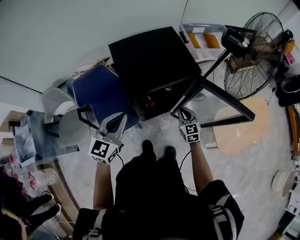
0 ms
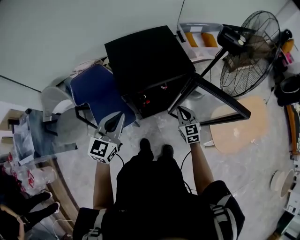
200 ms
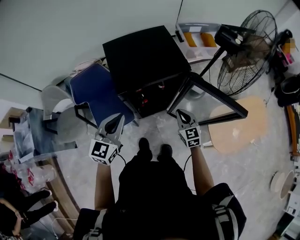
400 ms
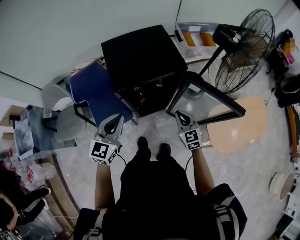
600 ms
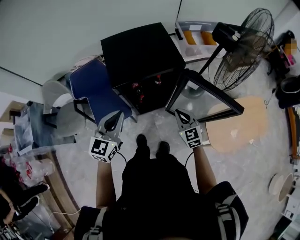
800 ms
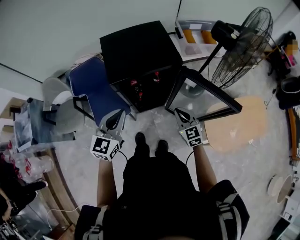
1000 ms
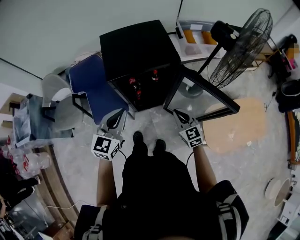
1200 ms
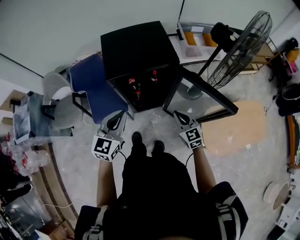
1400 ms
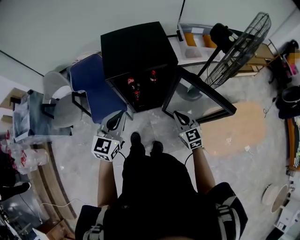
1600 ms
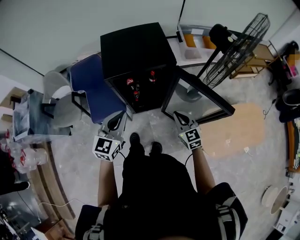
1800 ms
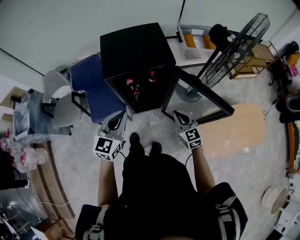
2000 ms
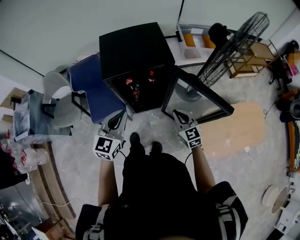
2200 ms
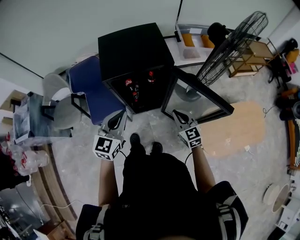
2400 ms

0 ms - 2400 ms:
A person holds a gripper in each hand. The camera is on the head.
0 ms - 1200 ms: The left gripper goes some 15 cm to the right and backward; the right gripper travels backward, upward and to the right by about 15 cm.
1200 ms - 2400 ms: The grippers stay close to where they were, moving slightly.

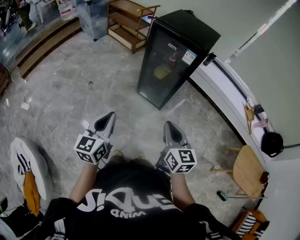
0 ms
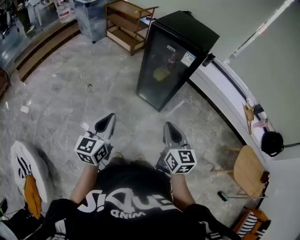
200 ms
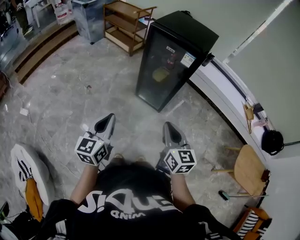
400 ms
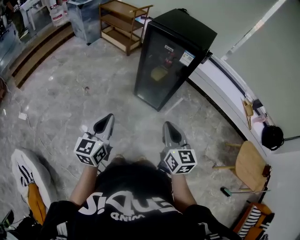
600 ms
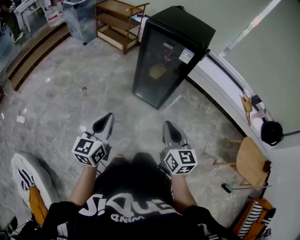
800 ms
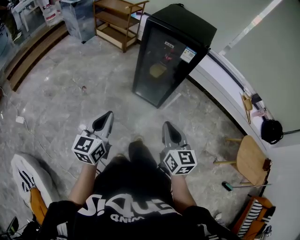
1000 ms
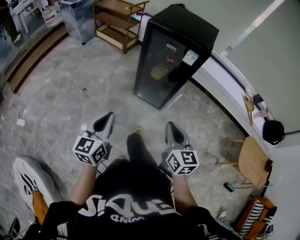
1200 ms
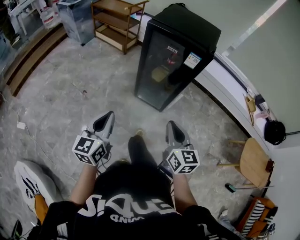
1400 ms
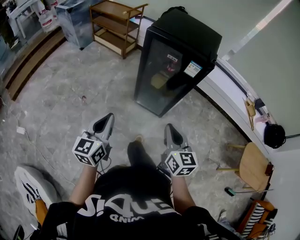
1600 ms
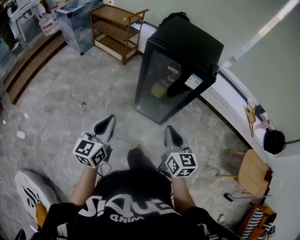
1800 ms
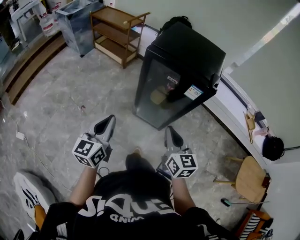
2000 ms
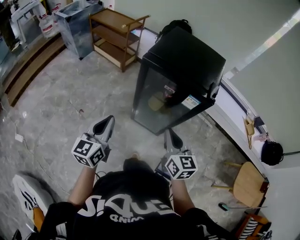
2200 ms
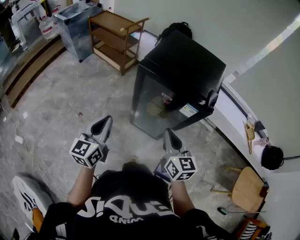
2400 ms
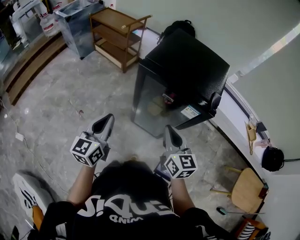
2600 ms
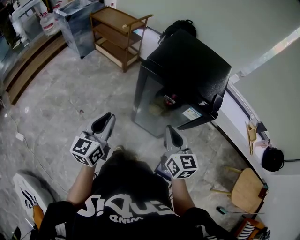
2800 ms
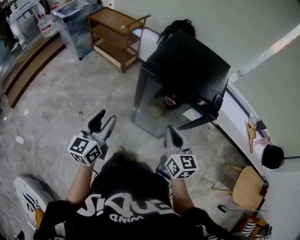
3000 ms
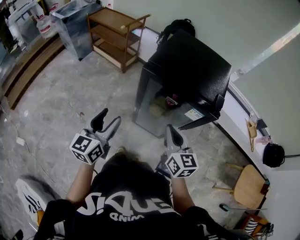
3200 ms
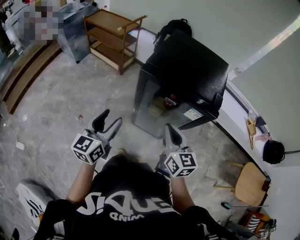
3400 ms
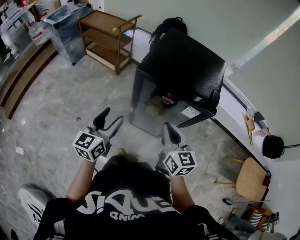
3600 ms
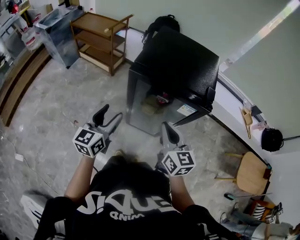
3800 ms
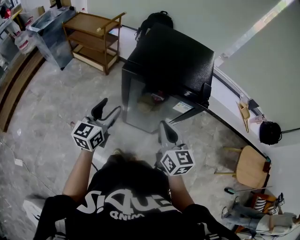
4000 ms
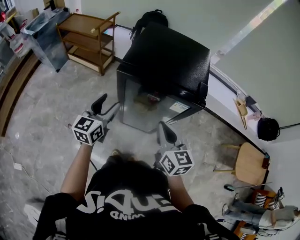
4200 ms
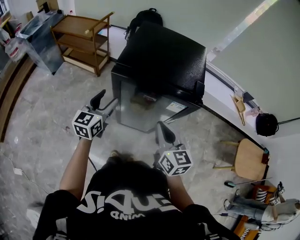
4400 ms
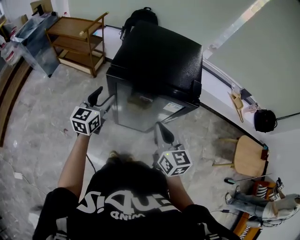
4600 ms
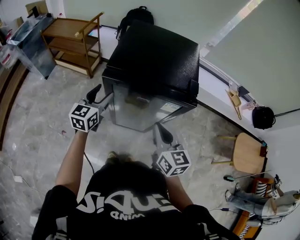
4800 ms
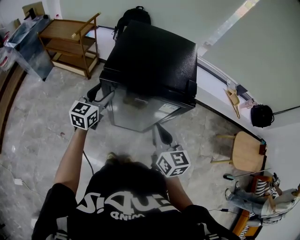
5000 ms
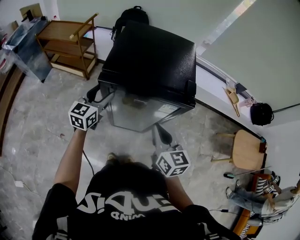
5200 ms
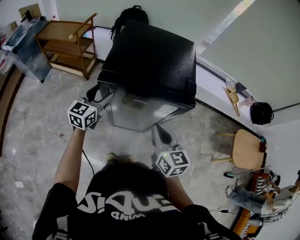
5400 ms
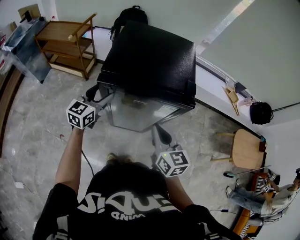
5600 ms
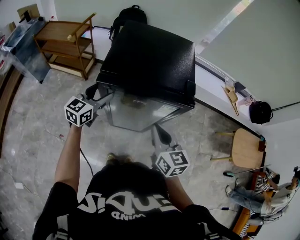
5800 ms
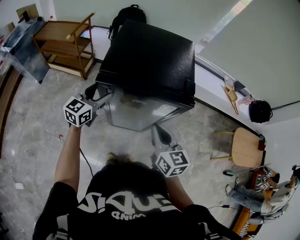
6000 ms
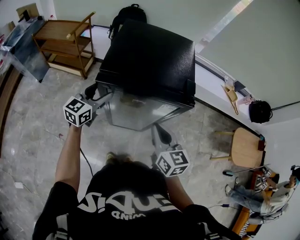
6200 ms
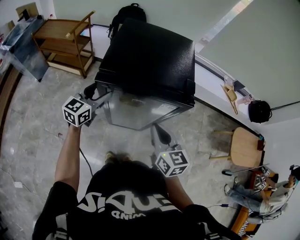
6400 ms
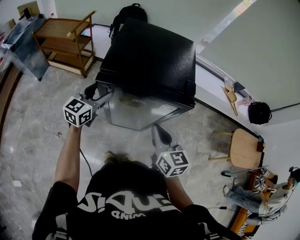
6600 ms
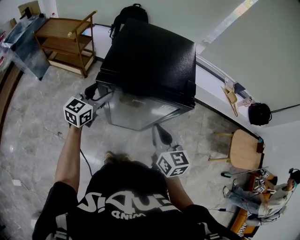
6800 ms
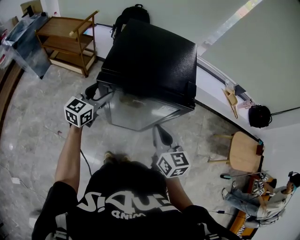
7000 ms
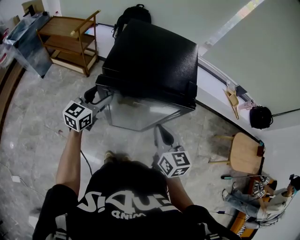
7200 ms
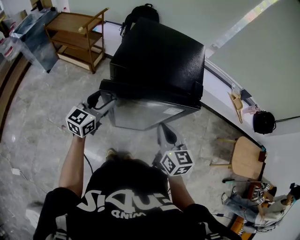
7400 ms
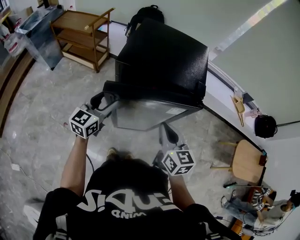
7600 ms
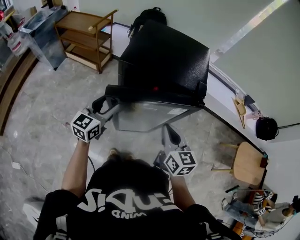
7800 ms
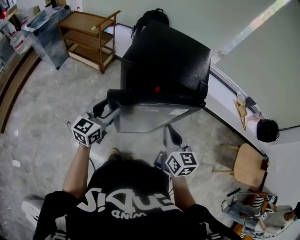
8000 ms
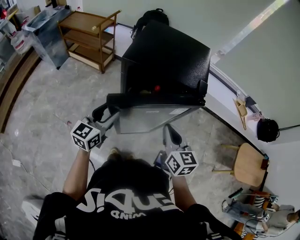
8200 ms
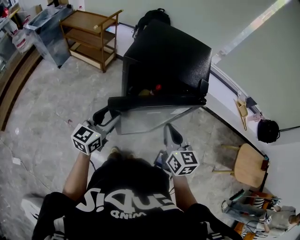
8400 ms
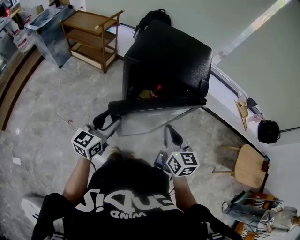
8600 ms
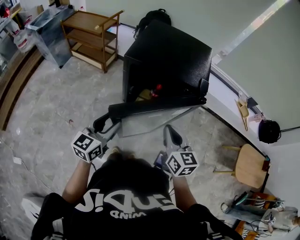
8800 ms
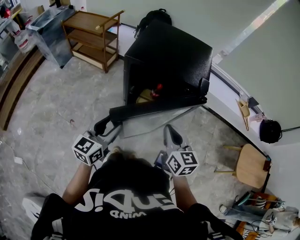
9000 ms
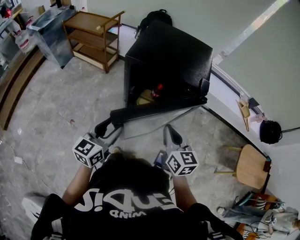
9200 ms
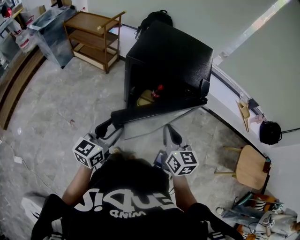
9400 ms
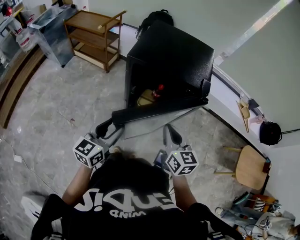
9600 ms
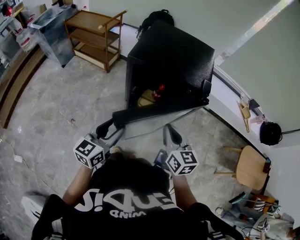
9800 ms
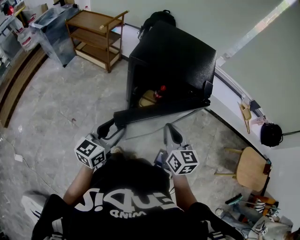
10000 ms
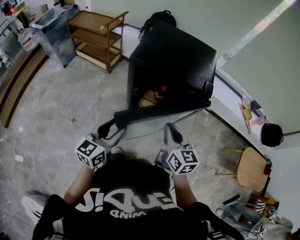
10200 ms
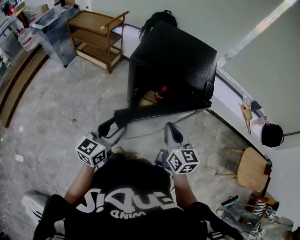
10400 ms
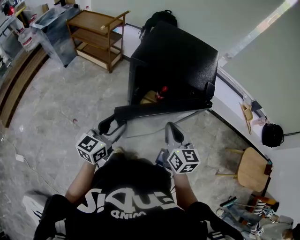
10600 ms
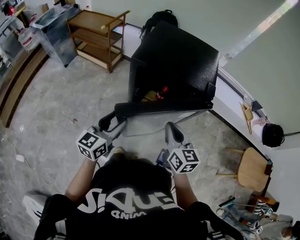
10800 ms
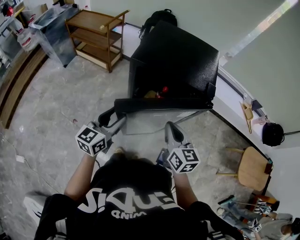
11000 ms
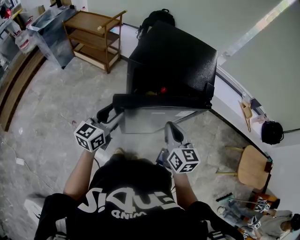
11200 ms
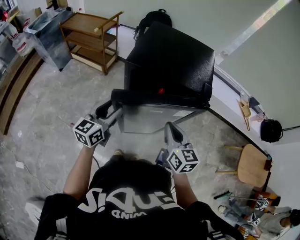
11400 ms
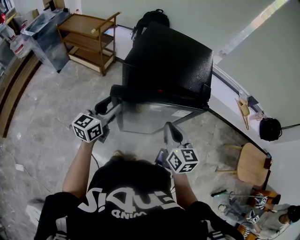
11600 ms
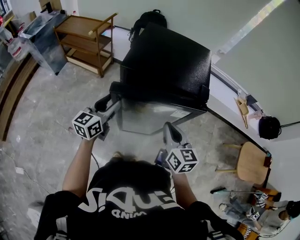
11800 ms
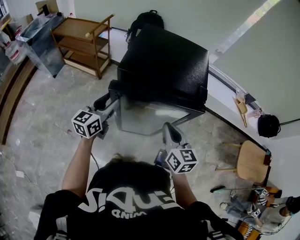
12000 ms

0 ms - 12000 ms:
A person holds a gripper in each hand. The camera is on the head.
0 ms - 1600 ms: The two grippers go approximately 15 cm forward.
1600 ms - 3000 ms: The two grippers go roughly 25 cm forward. The left gripper opens.
3000 ms - 4400 ms: The left gripper moves forward and to the right, roughly 15 cm.
4400 ms - 6000 ms: The left gripper shifts some 10 cm forward.
6000 ms - 7600 ms: The left gripper moves backward, about 10 cm.
7600 ms - 9000 ms: The left gripper travels backward by roughly 15 cm.
9000 ms - 10400 ms: The grippers make only small movements.
10400 ms - 12000 ms: The right gripper shifts approximately 5 cm forward, while the left gripper travels forward by roughly 15 cm.

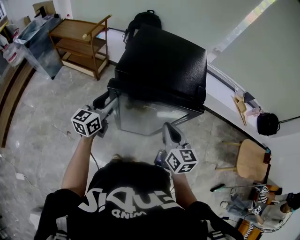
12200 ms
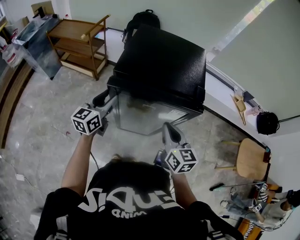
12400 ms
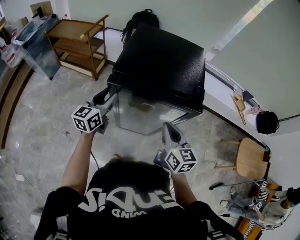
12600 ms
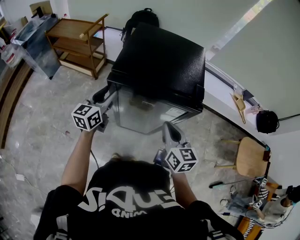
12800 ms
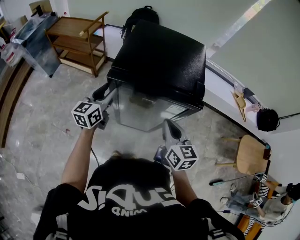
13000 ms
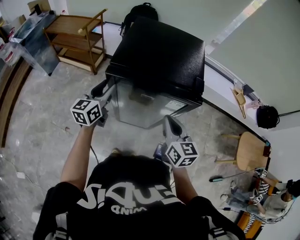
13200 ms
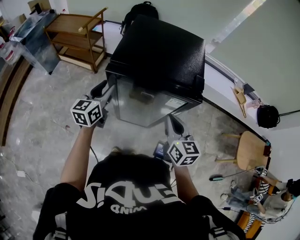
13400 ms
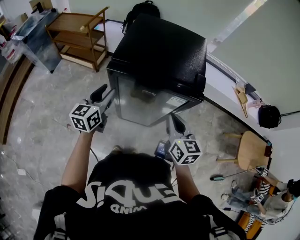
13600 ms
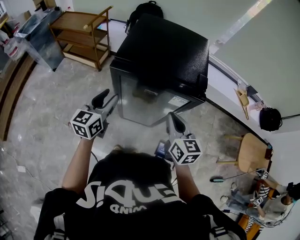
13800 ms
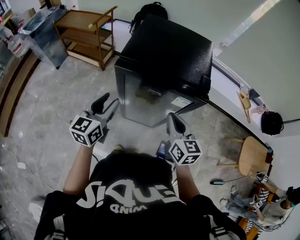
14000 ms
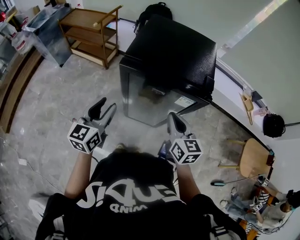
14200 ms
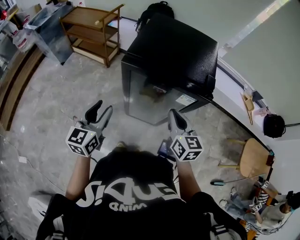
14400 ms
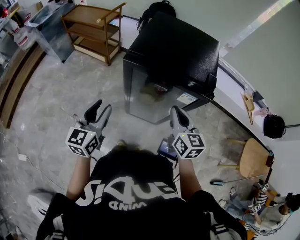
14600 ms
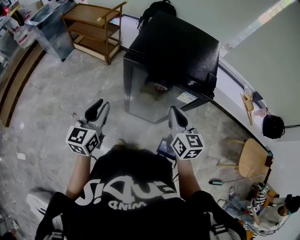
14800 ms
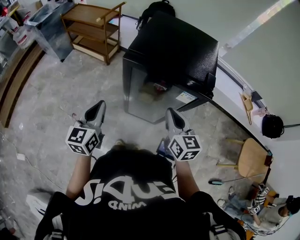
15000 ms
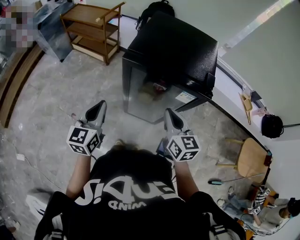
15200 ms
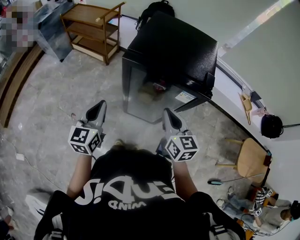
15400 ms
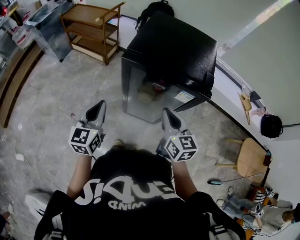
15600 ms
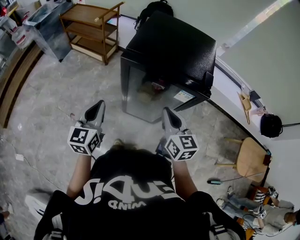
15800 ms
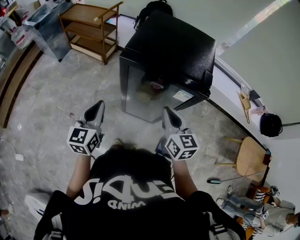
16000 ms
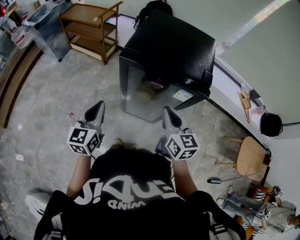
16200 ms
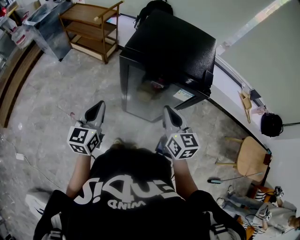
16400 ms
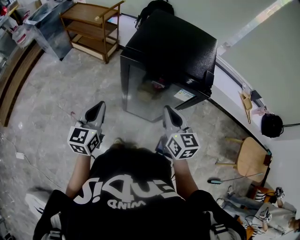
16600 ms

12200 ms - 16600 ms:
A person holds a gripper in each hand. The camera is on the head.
12200 ms - 13600 ms: There are only small adjustments of the grippers.
13600 ms - 15200 ms: The left gripper moves backward and to the left, some 15 cm, and closes. The right gripper is displaced to the left by some 5 cm.
15200 ms - 16600 ms: The grippers make only small movements.

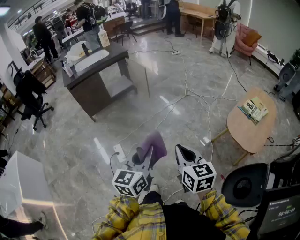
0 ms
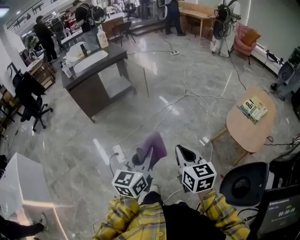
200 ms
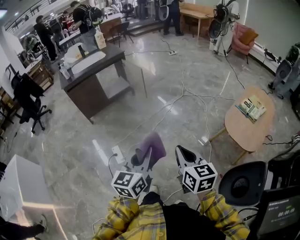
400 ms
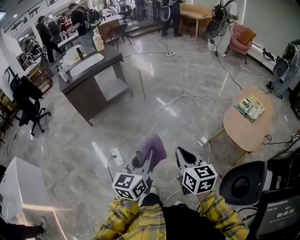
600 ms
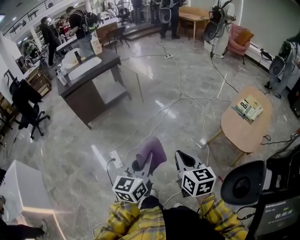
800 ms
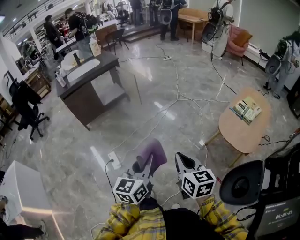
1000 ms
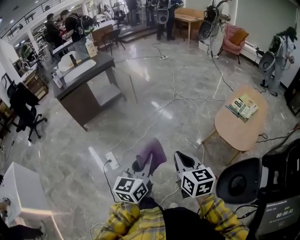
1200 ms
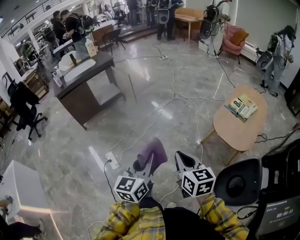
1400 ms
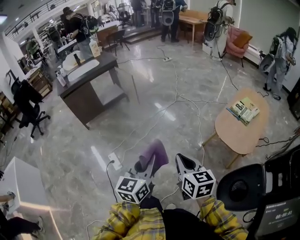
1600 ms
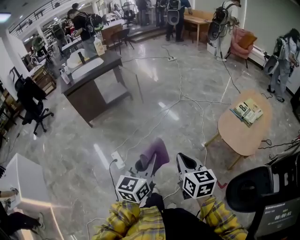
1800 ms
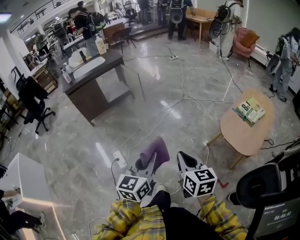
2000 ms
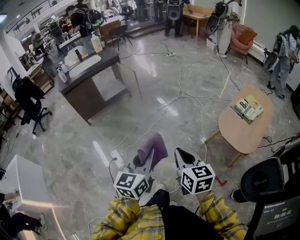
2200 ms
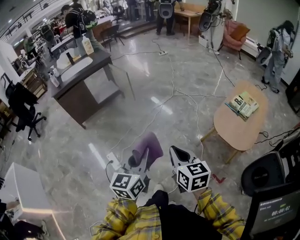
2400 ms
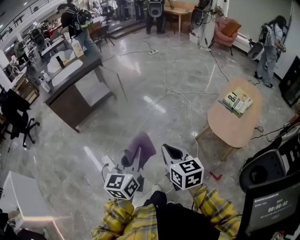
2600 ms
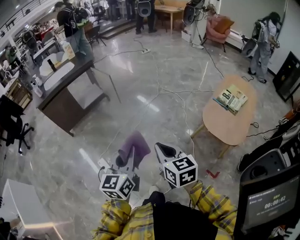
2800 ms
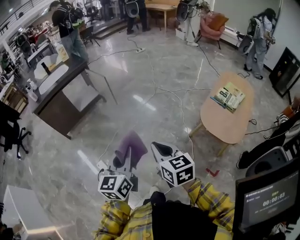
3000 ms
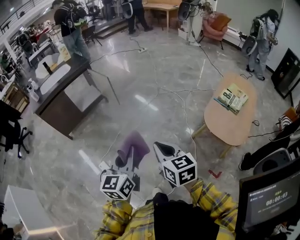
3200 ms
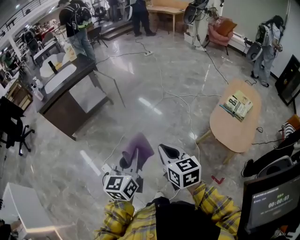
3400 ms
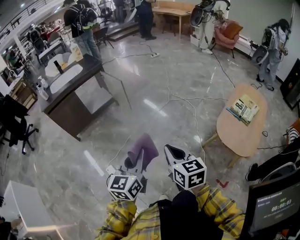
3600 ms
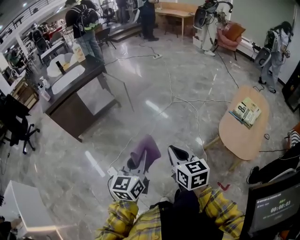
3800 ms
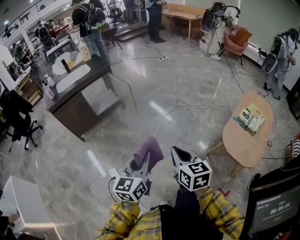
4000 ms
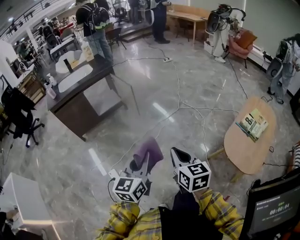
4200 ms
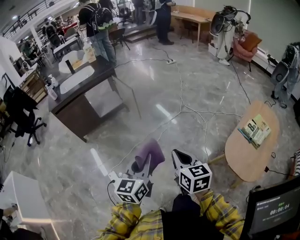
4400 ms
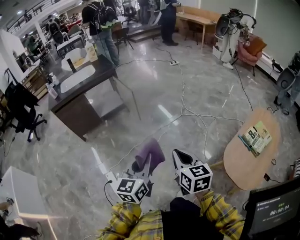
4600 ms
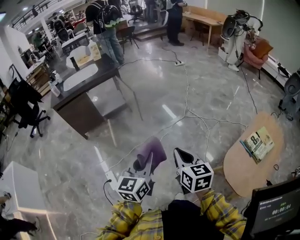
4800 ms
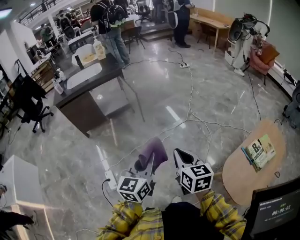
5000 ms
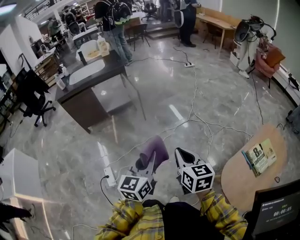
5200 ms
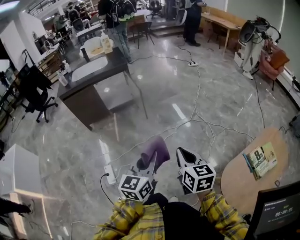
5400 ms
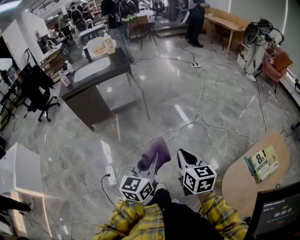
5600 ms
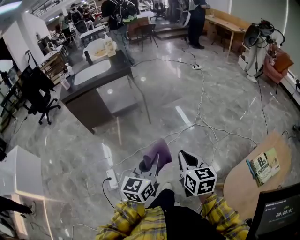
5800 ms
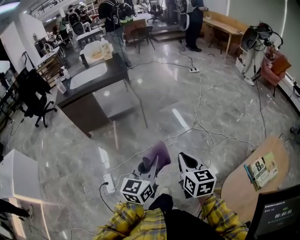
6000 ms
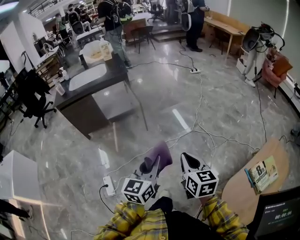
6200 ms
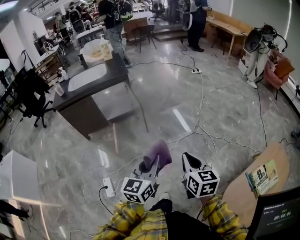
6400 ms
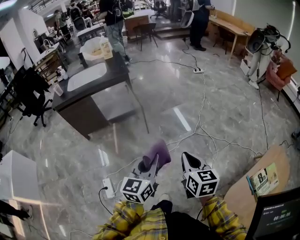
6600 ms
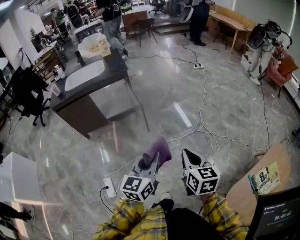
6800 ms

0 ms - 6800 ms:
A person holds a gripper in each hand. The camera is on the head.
0 ms - 1400 ms: The two grippers go some 10 cm to the right.
1400 ms - 2800 ms: The grippers both shift forward by some 10 cm.
2800 ms - 4000 ms: The grippers both shift forward by some 15 cm.
4000 ms - 5400 ms: Both grippers move forward and to the right, roughly 20 cm.
5400 ms - 6800 ms: Both grippers travel together forward, roughly 20 cm.
